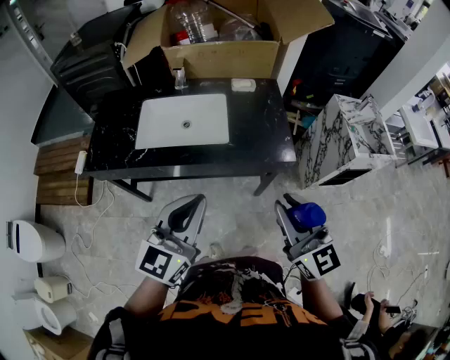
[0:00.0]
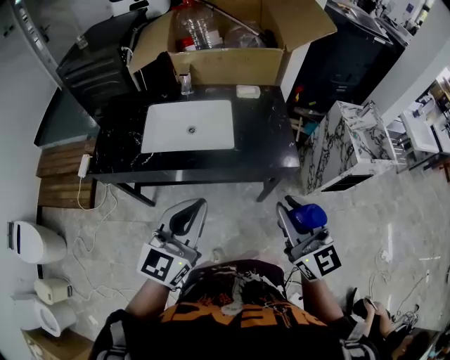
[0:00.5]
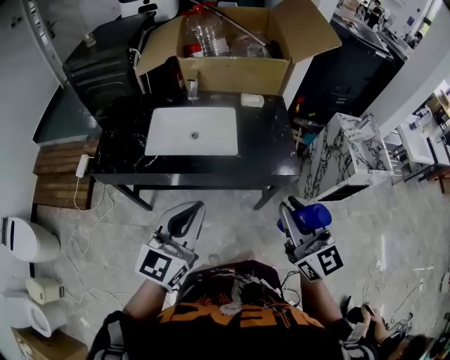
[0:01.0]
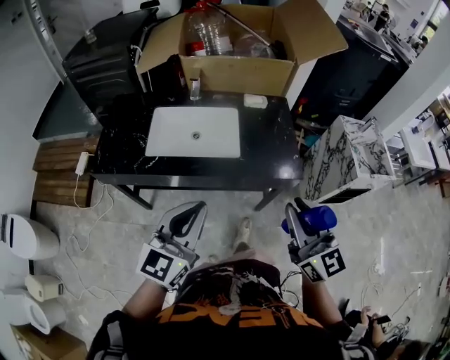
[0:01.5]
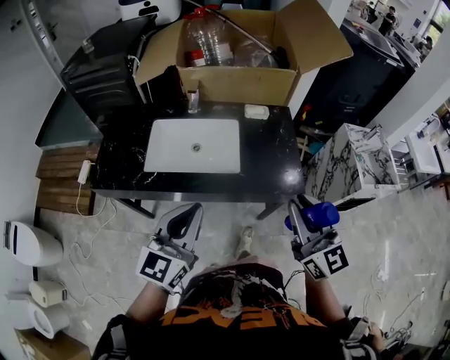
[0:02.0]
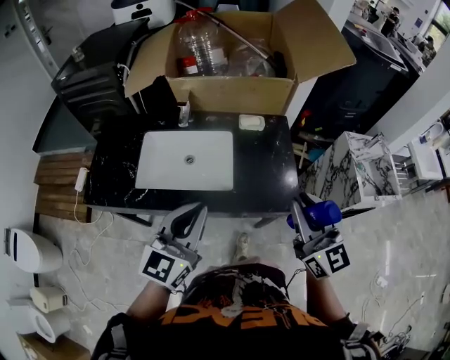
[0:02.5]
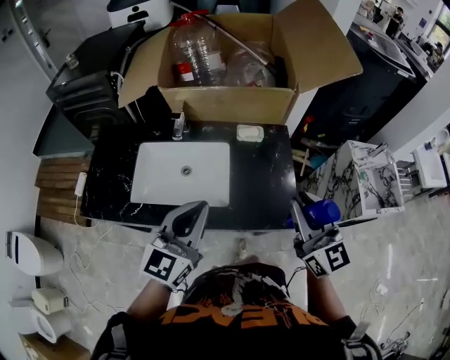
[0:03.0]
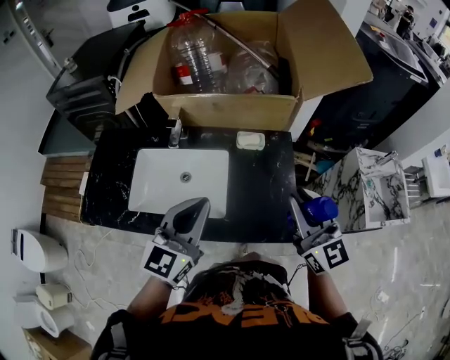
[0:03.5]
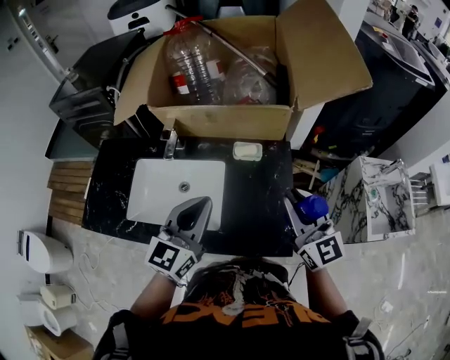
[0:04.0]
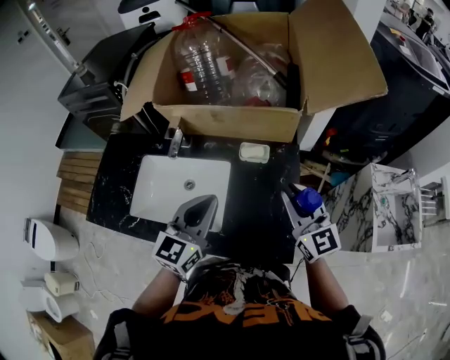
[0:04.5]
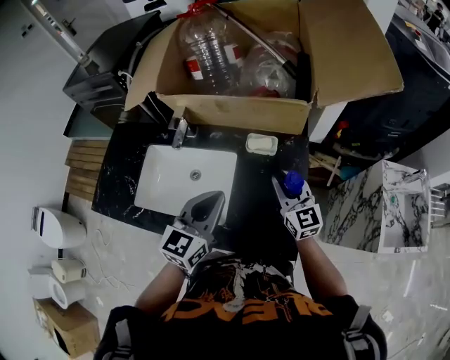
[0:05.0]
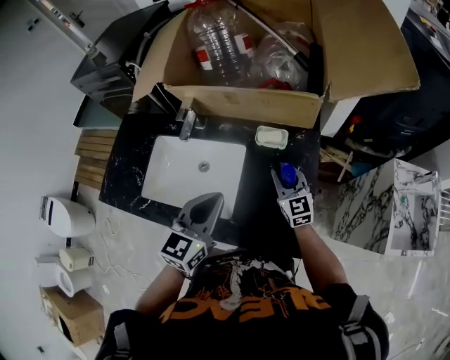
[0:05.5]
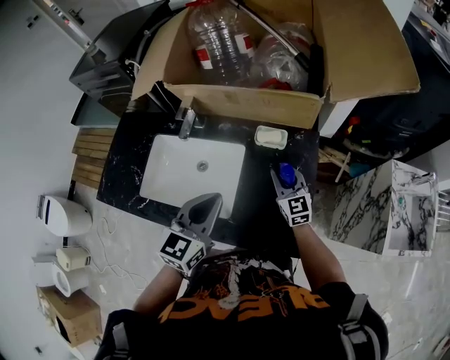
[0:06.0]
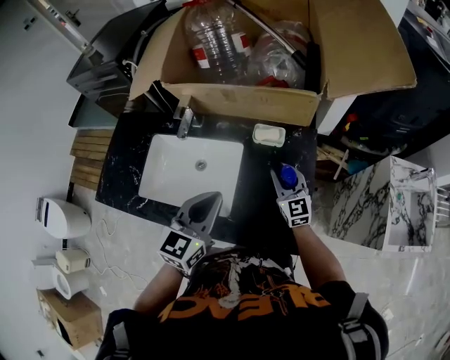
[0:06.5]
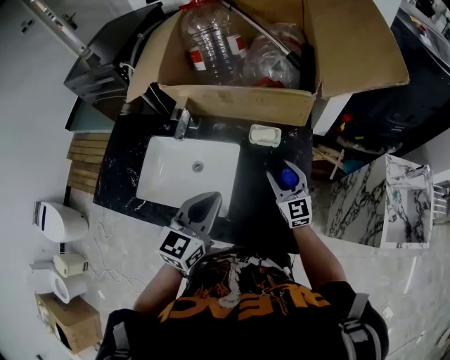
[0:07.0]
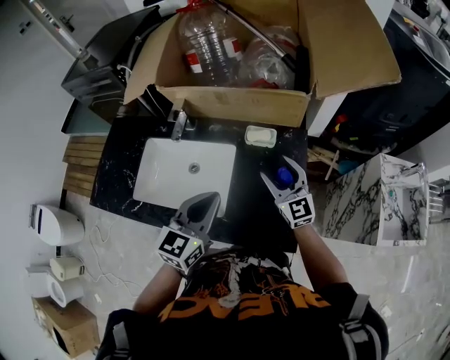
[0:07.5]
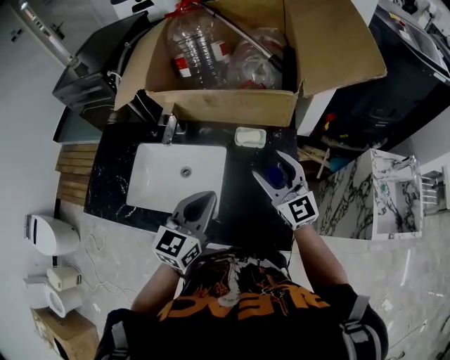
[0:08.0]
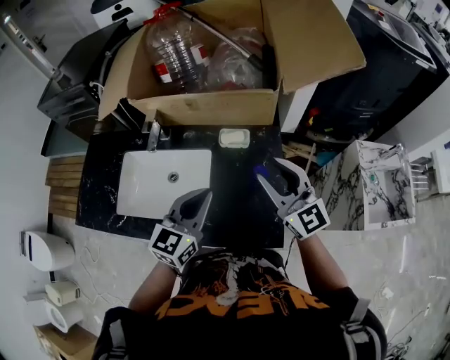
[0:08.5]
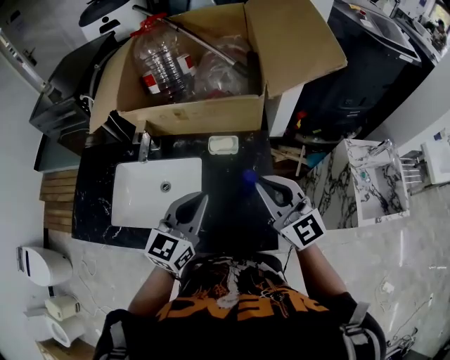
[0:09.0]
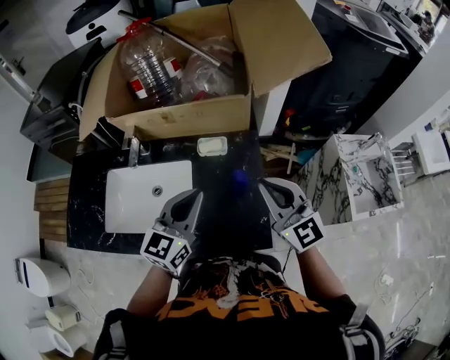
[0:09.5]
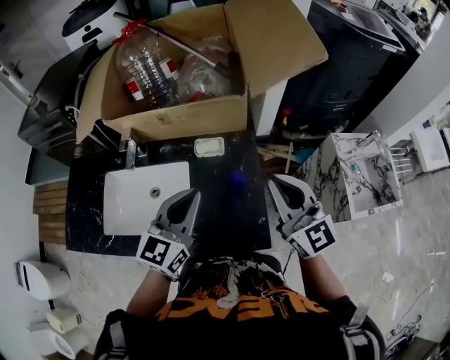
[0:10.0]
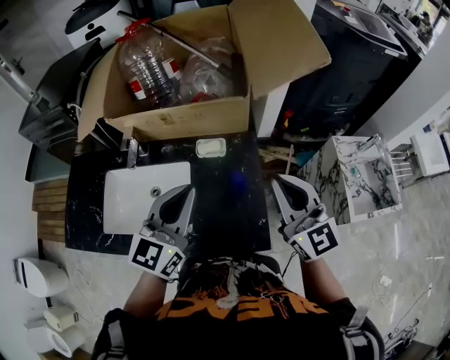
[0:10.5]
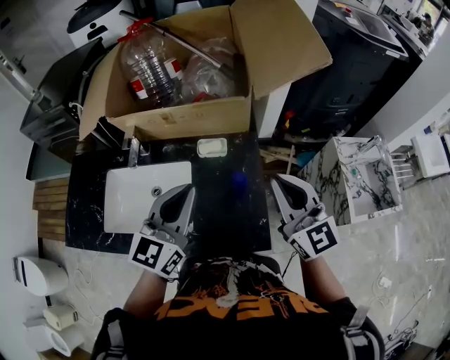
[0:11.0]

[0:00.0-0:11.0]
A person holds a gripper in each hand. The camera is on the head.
0:00.0 to 0:02.0: Both grippers move forward, roughly 10 cm.
0:02.0 to 0:03.5: The left gripper heads forward and to the right, covering about 25 cm. Meanwhile the right gripper travels forward by about 25 cm.
0:03.5 to 0:05.5: The right gripper shifts some 30 cm downward and forward. Meanwhile the left gripper is displaced downward, forward and to the right by about 15 cm.
0:05.5 to 0:07.5: The right gripper heads upward, covering some 5 cm, and opens.
0:07.5 to 0:09.0: The left gripper ends up roughly 5 cm from where it was. The right gripper shifts approximately 15 cm upward and backward, and closes its fingers.
0:09.0 to 0:11.0: The right gripper heads to the right, covering some 5 cm; the left gripper heads upward, covering about 5 cm.

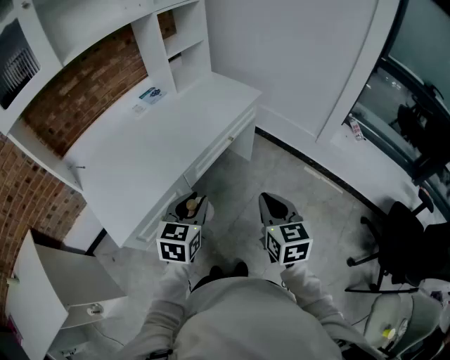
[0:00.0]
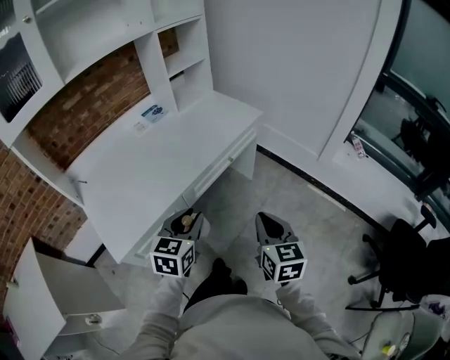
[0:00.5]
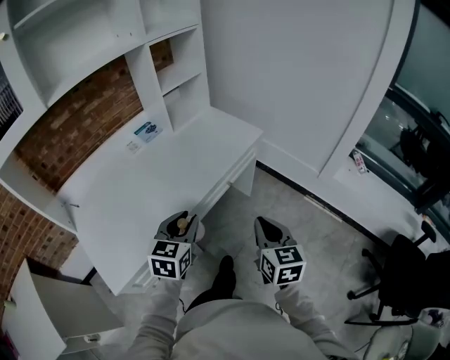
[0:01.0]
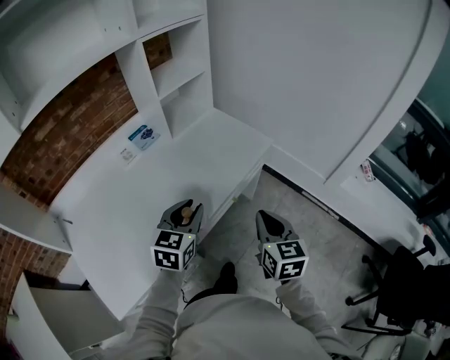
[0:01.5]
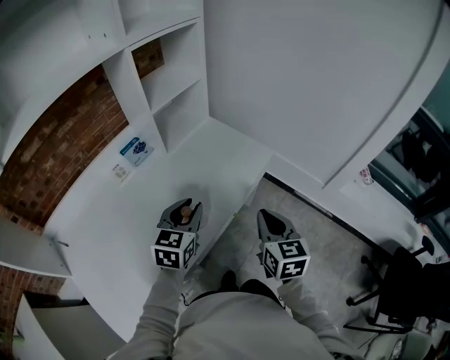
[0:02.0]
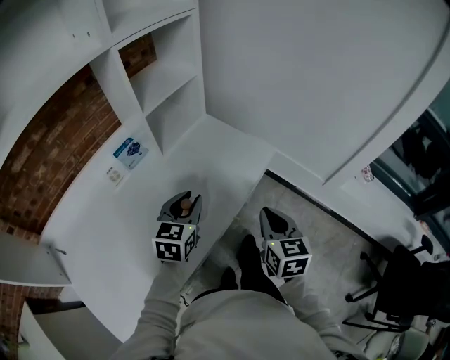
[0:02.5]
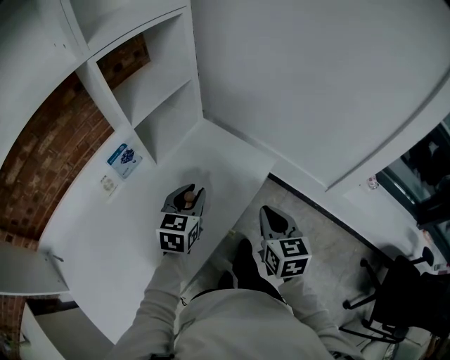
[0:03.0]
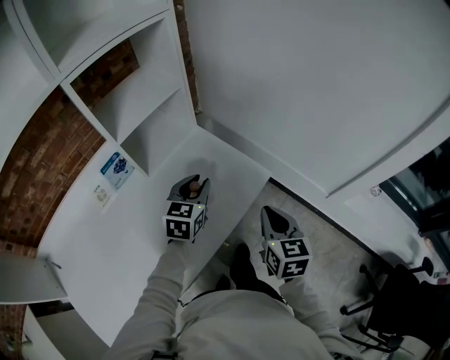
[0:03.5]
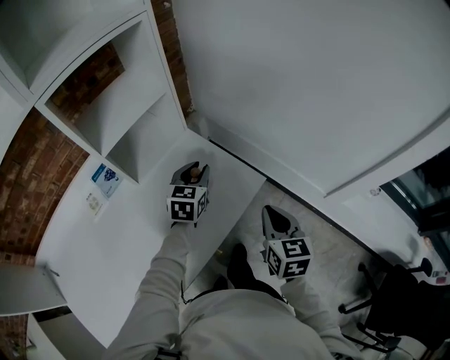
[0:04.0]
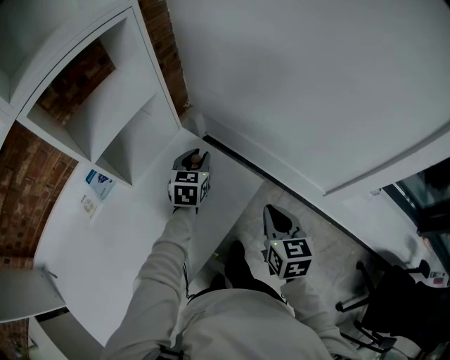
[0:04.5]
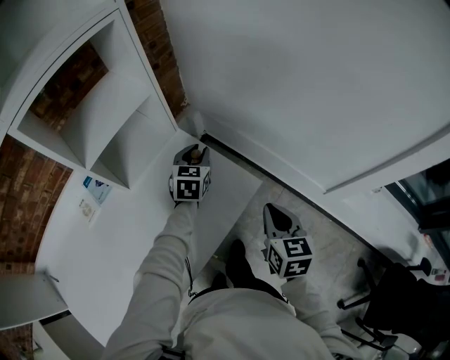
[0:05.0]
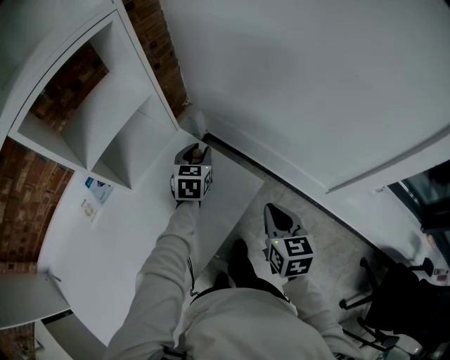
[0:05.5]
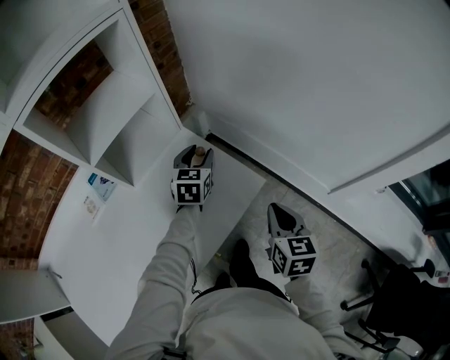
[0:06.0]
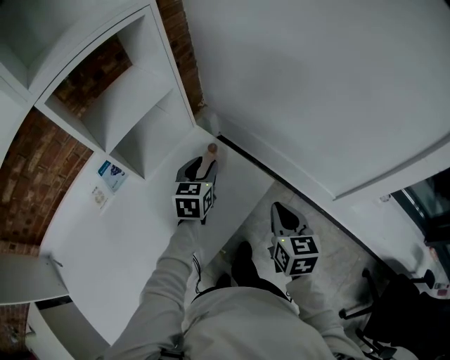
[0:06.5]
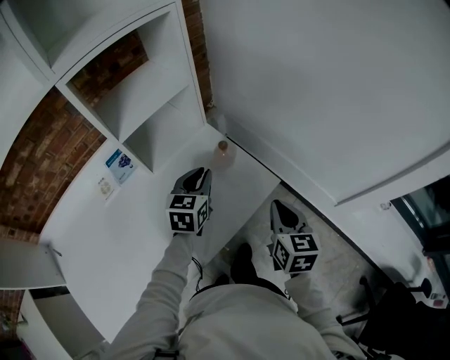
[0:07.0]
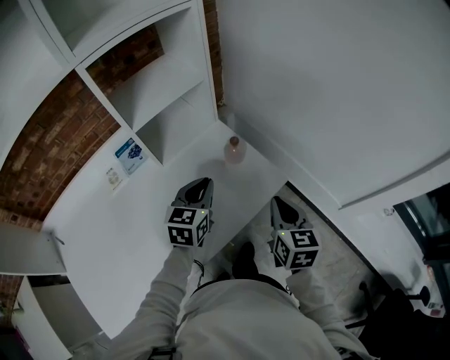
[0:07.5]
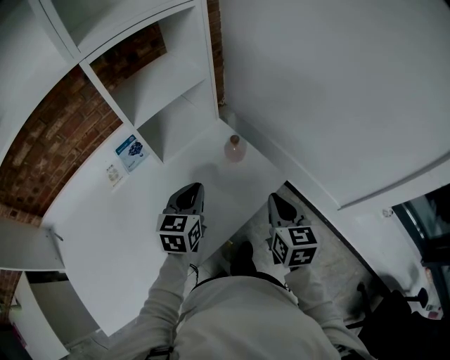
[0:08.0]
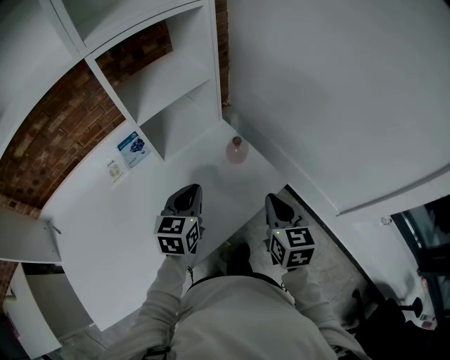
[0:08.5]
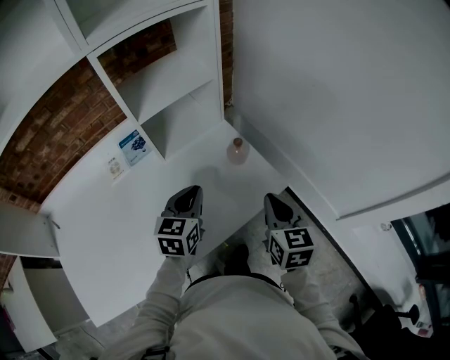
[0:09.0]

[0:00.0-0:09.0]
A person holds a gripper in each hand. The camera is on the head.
0:00.0 to 0:02.0: The grippers both shift forward by about 35 cm.
0:02.0 to 0:04.5: The right gripper heads forward and to the right, covering about 25 cm. Meanwhile the left gripper is displaced forward by about 40 cm.
0:04.5 to 0:07.0: The left gripper goes about 10 cm backward and to the left.
0:07.0 to 0:09.0: The right gripper moves approximately 5 cm. Meanwhile the left gripper is displaced backward and to the left by some 10 cm.

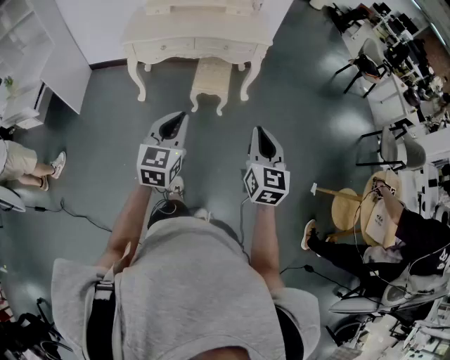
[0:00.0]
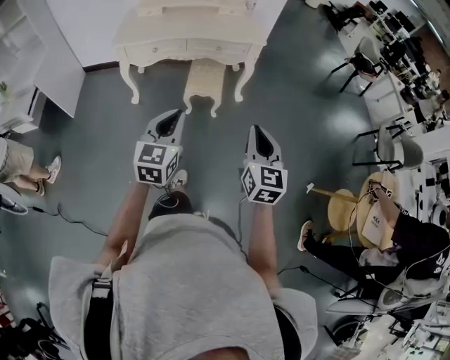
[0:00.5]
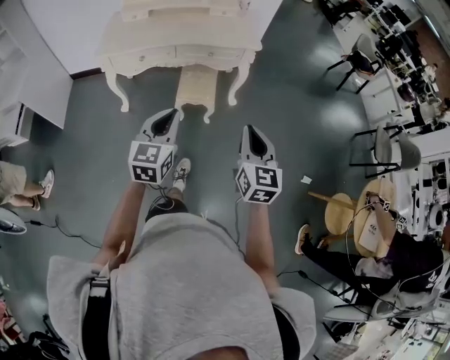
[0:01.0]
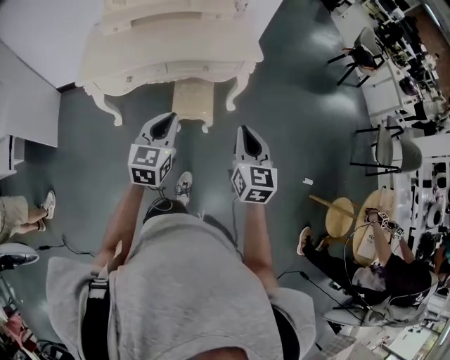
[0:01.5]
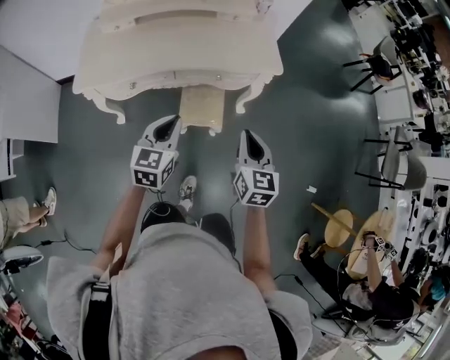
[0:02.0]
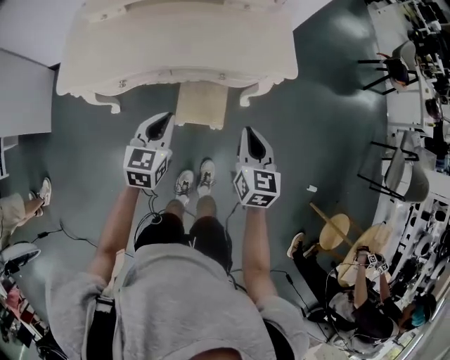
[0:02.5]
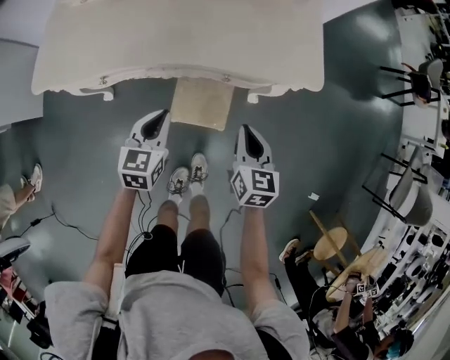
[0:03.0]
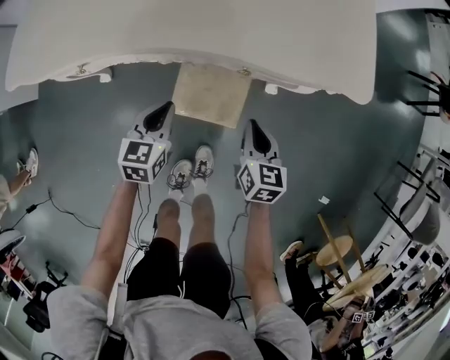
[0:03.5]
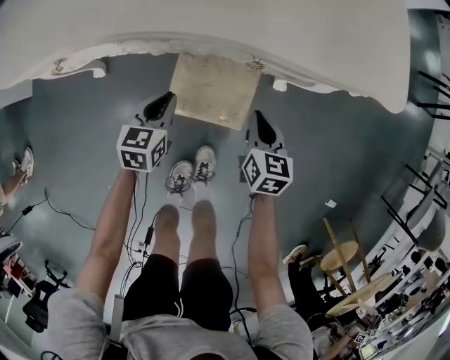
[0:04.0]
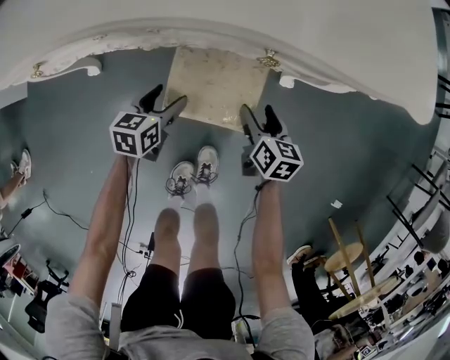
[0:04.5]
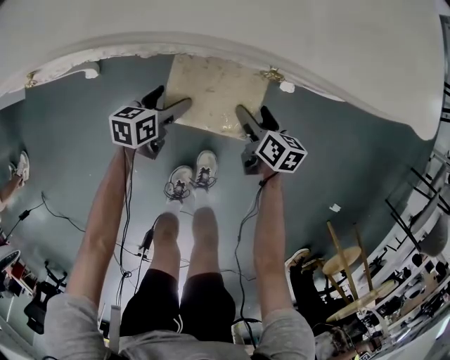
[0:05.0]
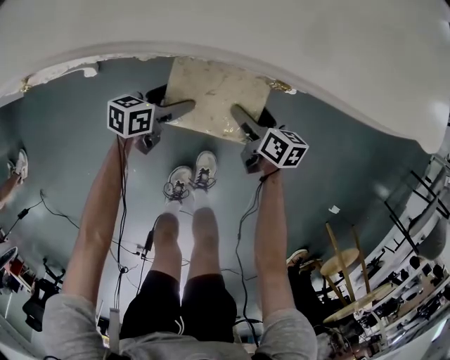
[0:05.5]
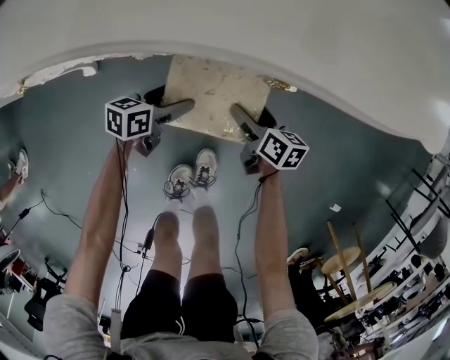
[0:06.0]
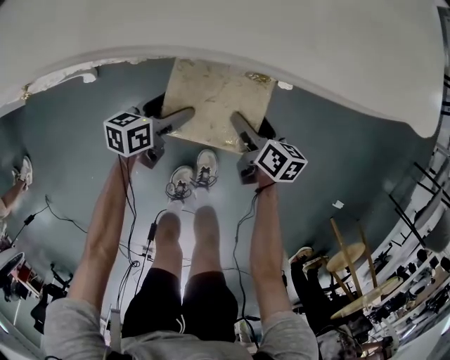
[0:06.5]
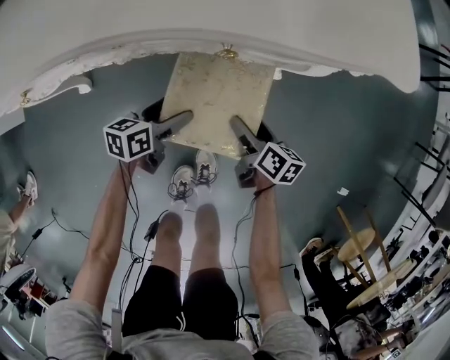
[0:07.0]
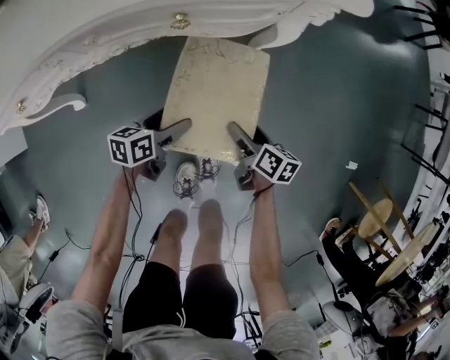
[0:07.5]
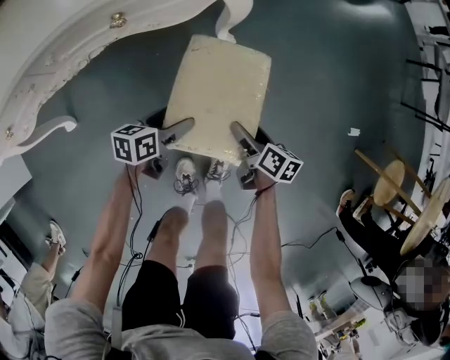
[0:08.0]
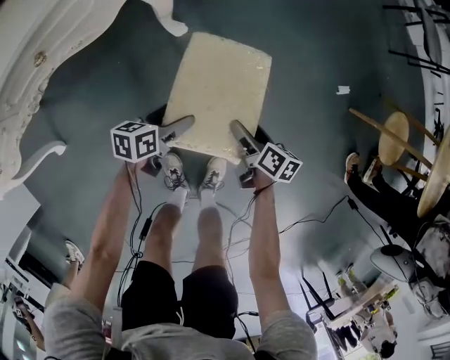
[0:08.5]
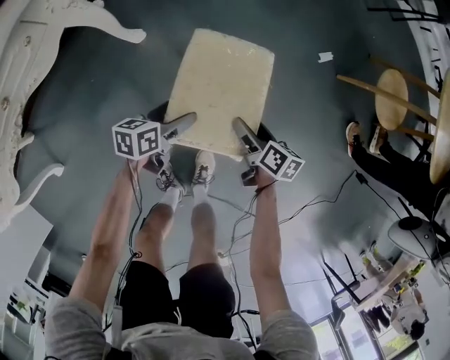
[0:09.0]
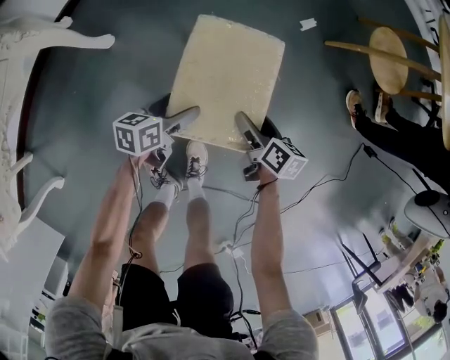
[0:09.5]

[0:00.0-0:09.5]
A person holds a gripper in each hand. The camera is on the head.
0:00.0 to 0:02.0: Both grippers are carried forward, some 50 cm.
0:02.0 to 0:04.0: Both grippers travel together downward and forward, some 40 cm. The left gripper turns by approximately 20 degrees. Meanwhile the right gripper changes its angle by some 20 degrees.
0:04.0 to 0:05.5: Both grippers move downward, approximately 15 cm. The right gripper swivels roughly 30 degrees, and opens, while the left gripper changes its angle by about 30 degrees, and opens its fingers.
0:05.5 to 0:07.5: The right gripper heads backward, to the right and upward, covering roughly 20 cm, and swivels some 20 degrees. Meanwhile the left gripper shifts roughly 15 cm to the right, backward and upward.
0:07.5 to 0:09.5: Both grippers are carried about 50 cm. The right gripper changes its angle by about 40 degrees, while the left gripper changes its angle by roughly 50 degrees.
